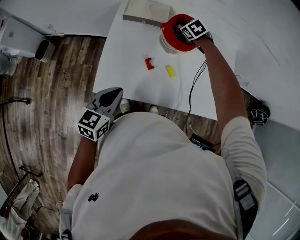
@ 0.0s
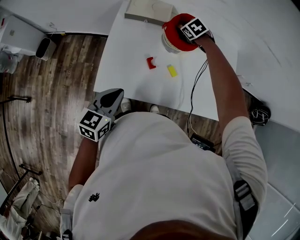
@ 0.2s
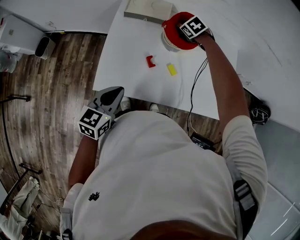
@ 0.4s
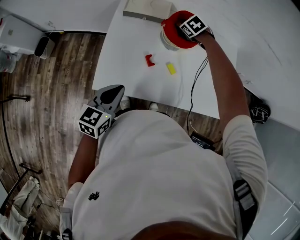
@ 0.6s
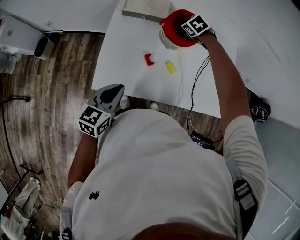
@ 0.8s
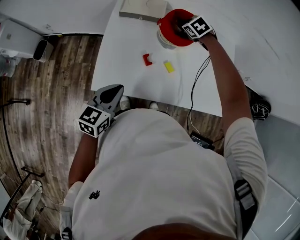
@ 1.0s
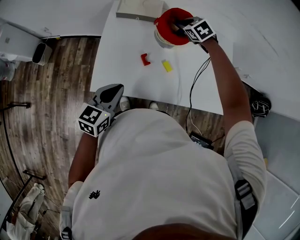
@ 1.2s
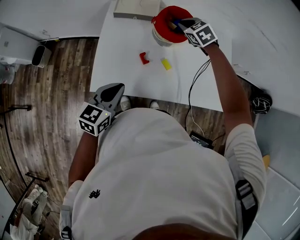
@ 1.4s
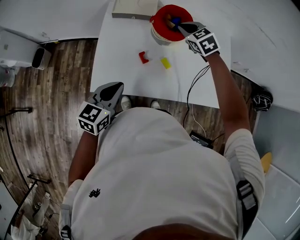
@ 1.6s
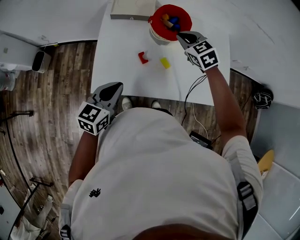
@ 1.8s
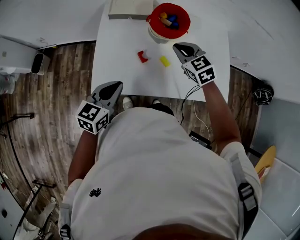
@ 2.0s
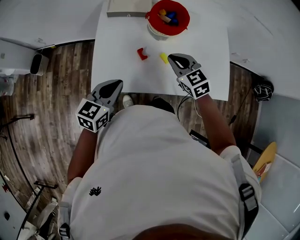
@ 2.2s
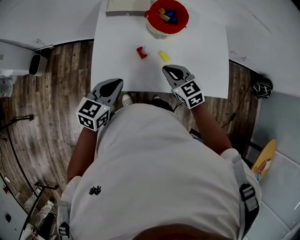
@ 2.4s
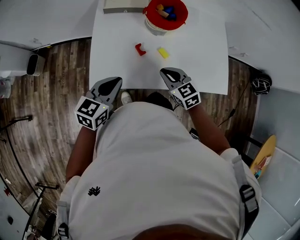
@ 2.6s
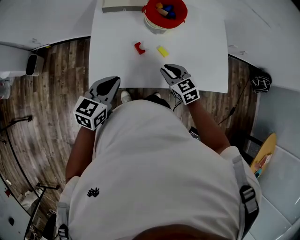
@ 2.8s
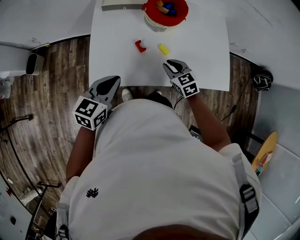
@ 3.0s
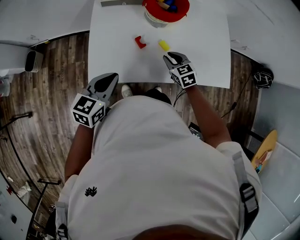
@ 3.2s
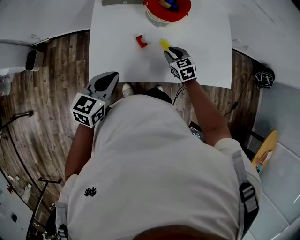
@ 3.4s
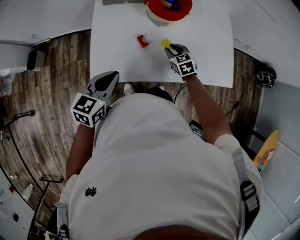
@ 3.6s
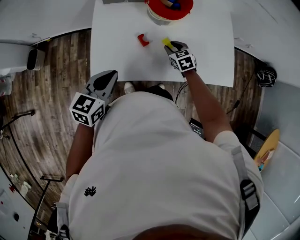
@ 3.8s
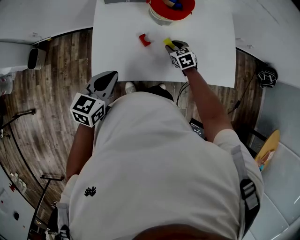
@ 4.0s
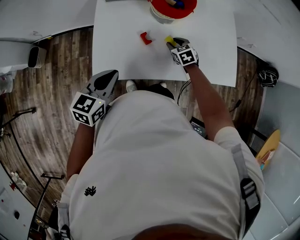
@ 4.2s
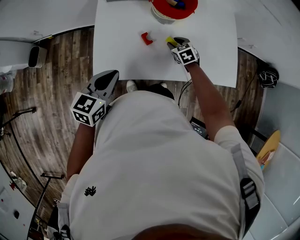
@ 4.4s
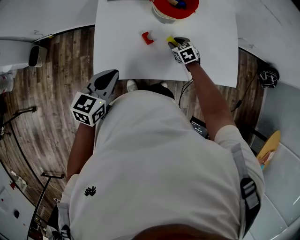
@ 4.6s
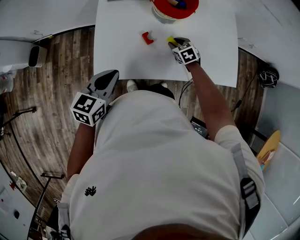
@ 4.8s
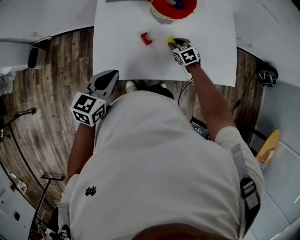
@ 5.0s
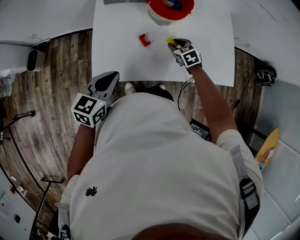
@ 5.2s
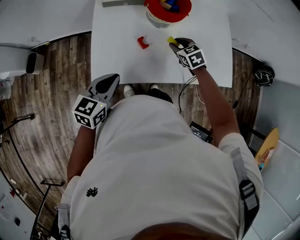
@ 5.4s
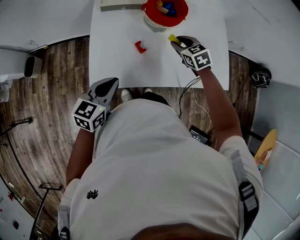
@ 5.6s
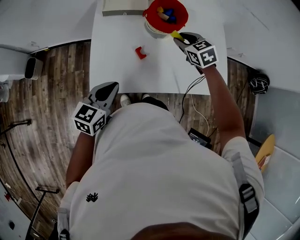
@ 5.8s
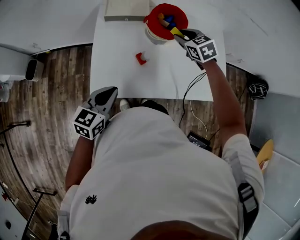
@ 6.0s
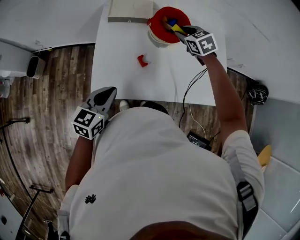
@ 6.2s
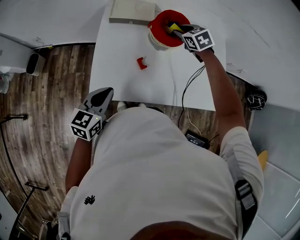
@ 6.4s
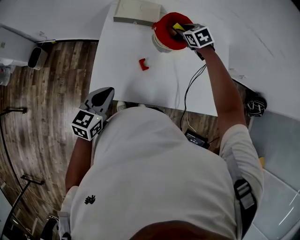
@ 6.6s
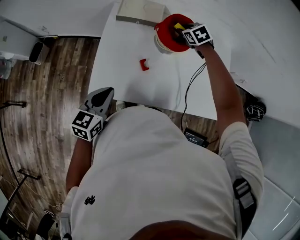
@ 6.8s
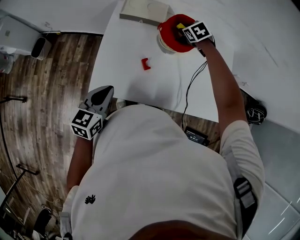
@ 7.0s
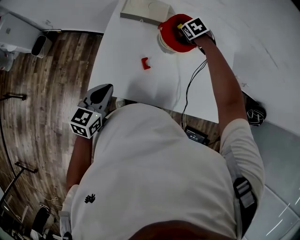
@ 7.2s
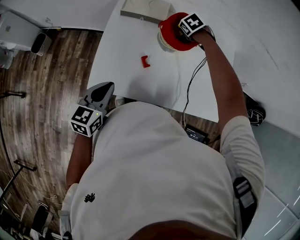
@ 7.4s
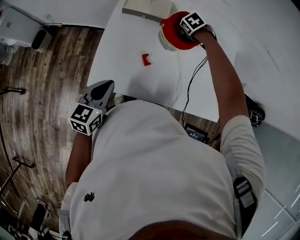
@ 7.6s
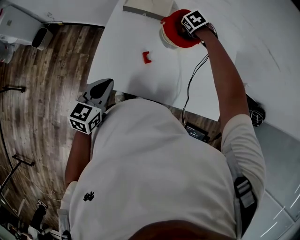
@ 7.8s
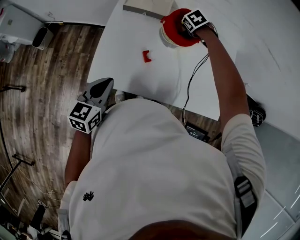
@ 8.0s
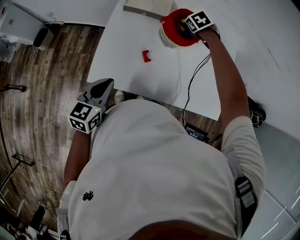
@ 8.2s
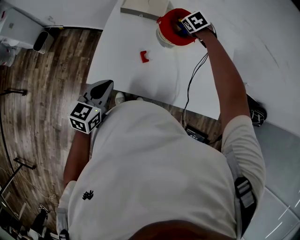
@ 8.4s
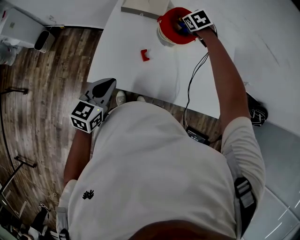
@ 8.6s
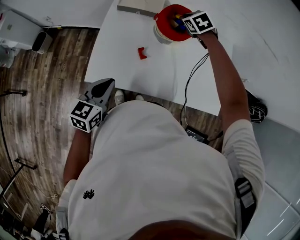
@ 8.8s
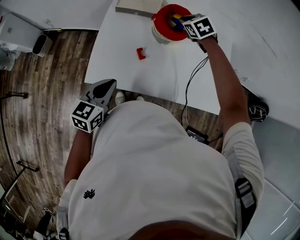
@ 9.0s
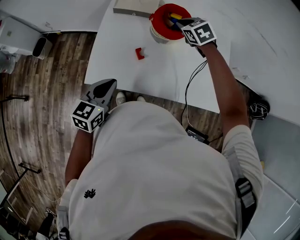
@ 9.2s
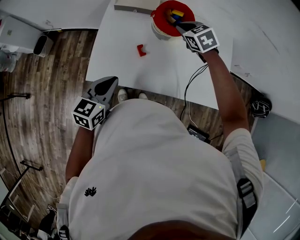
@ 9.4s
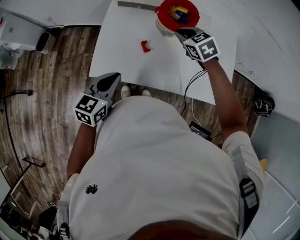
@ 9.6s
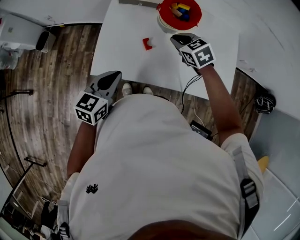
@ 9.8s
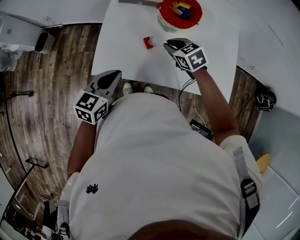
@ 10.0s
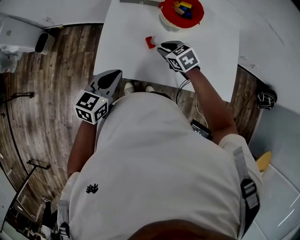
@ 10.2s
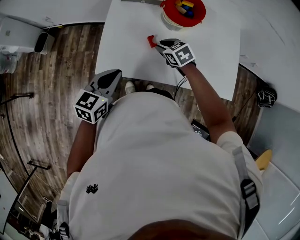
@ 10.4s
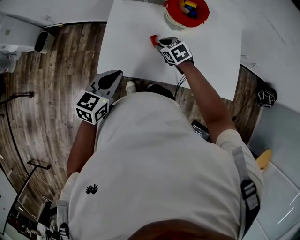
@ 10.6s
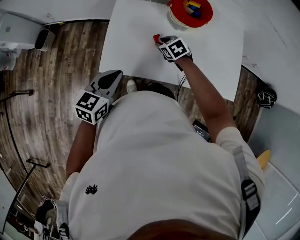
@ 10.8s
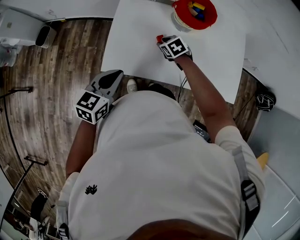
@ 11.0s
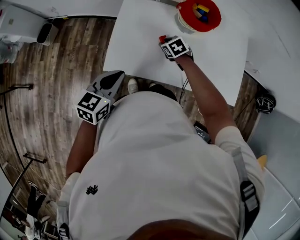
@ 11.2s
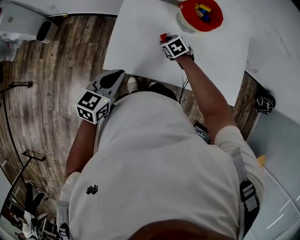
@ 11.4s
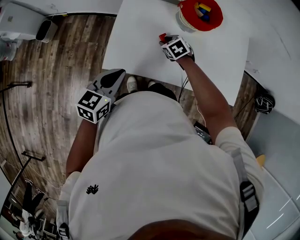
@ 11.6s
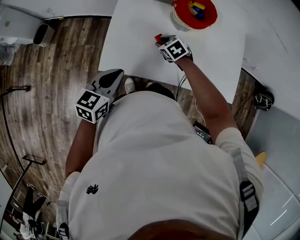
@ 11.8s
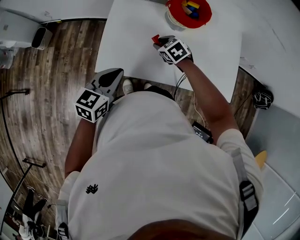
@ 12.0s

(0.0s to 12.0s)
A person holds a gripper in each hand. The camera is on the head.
0.0s - 1.6s: The right gripper moves upward and backward, about 15 cm, and closes.
1.6s - 3.0s: The right gripper moves backward and downward, approximately 25 cm.
3.0s - 4.4s: The right gripper shifts roughly 15 cm forward and downward.
4.4s - 6.0s: The right gripper is displaced upward by about 20 cm.
6.0s - 7.6s: The right gripper ends up about 15 cm from where it was, and swivels roughly 30 degrees.
7.6s - 9.0s: The right gripper shifts roughly 10 cm upward, swivels some 20 degrees, and closes.
9.0s - 10.4s: The right gripper shifts about 25 cm backward, to the left and downward.
10.4s - 12.0s: The right gripper goes downward and returns, approximately 10 cm each way.

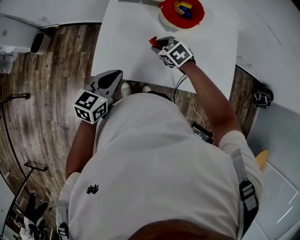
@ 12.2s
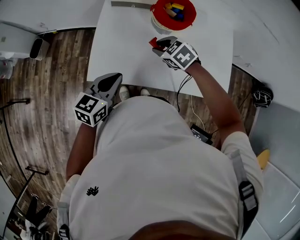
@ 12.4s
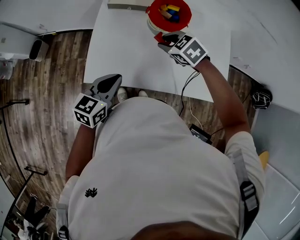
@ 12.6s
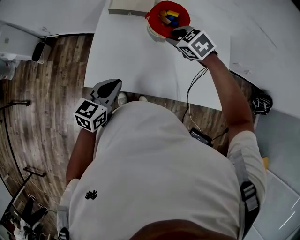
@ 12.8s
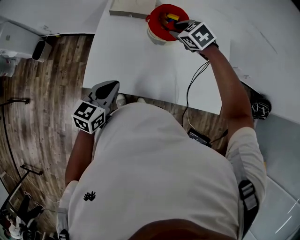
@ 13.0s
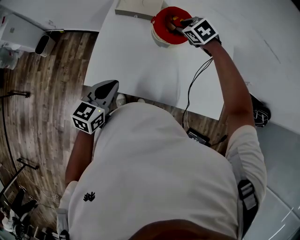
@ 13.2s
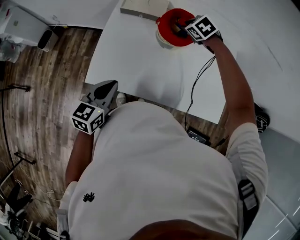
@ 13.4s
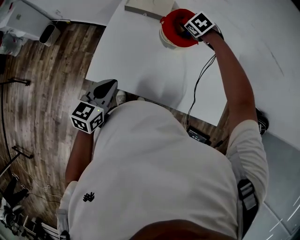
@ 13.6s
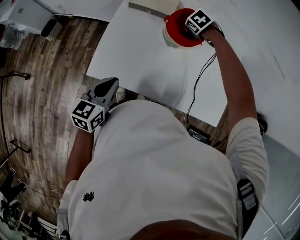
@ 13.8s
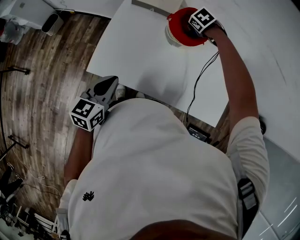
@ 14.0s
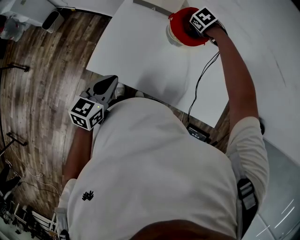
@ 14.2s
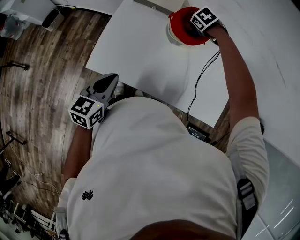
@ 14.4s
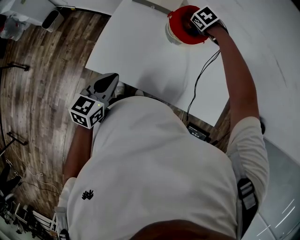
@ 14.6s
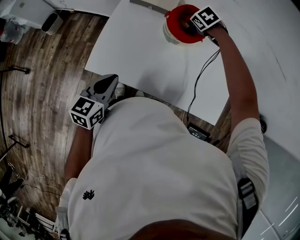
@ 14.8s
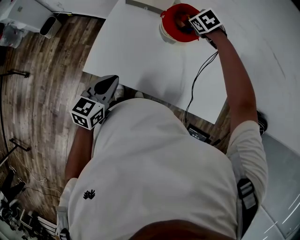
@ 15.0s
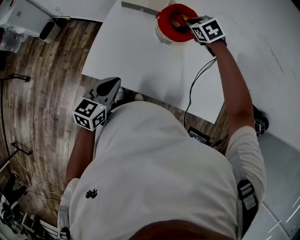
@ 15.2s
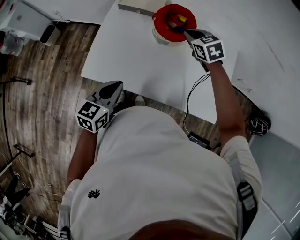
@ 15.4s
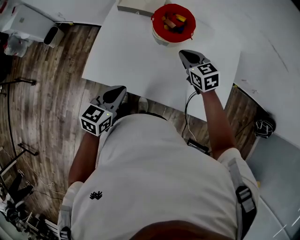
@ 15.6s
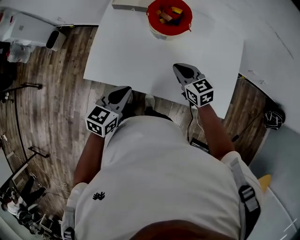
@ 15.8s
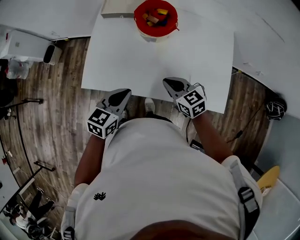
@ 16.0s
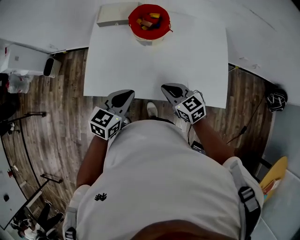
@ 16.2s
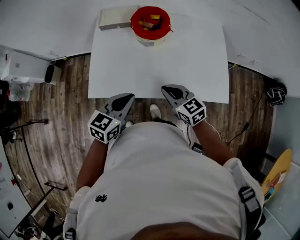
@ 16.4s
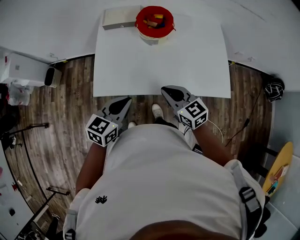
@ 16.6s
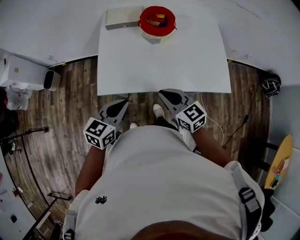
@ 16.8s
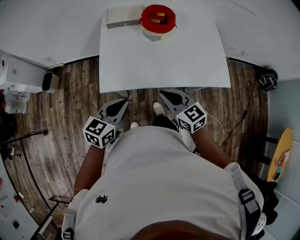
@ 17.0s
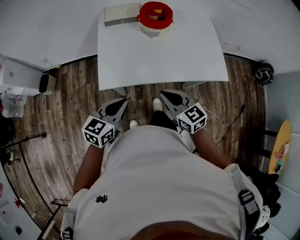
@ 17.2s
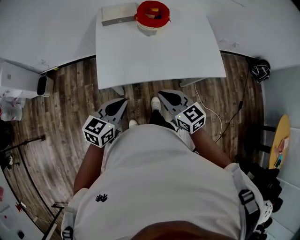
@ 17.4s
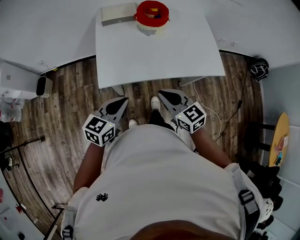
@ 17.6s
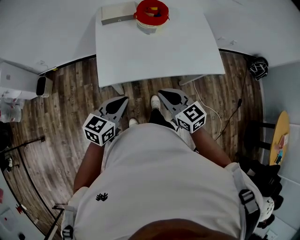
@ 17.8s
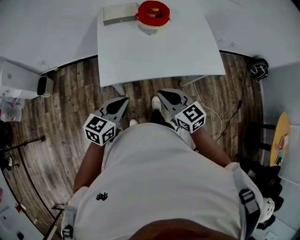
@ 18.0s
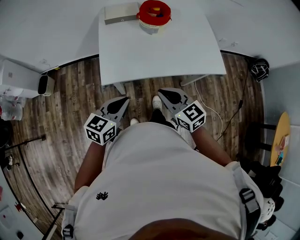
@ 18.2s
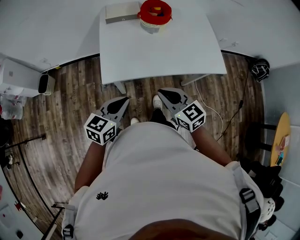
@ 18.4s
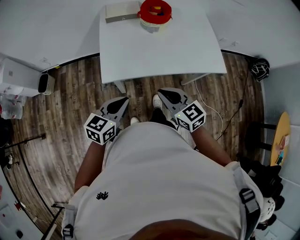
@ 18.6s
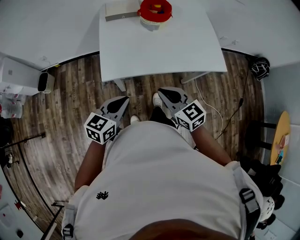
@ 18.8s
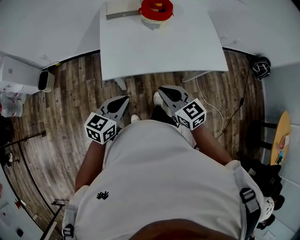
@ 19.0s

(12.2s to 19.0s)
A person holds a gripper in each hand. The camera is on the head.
12.2s - 13.6s: The right gripper heads forward and to the right, covering about 25 cm, and swivels approximately 20 degrees.
13.6s - 15.0s: The grippers move only a little.
15.0s - 16.2s: The left gripper travels to the right by approximately 10 cm, and swivels about 20 degrees. Meanwhile the right gripper heads backward, covering approximately 35 cm, tilts its fingers approximately 40 degrees upward, and closes its fingers.
16.2s - 17.6s: The left gripper heads to the left and backward, covering about 25 cm. The right gripper heads backward, to the left and upward, covering about 25 cm.
17.6s - 19.0s: There are only small adjustments of the grippers.

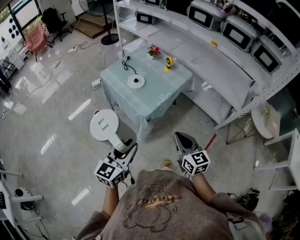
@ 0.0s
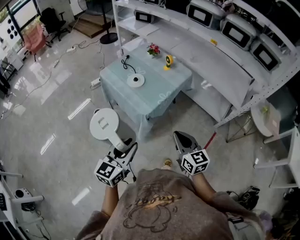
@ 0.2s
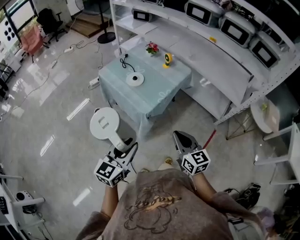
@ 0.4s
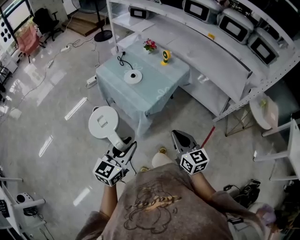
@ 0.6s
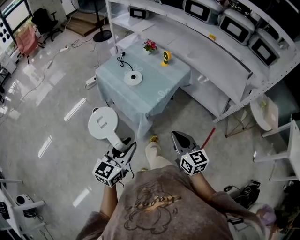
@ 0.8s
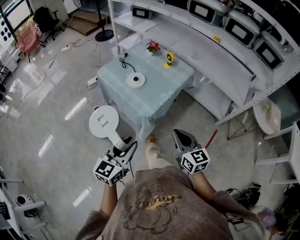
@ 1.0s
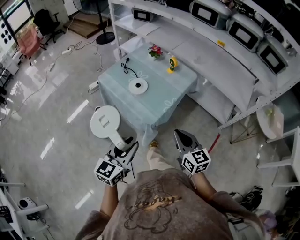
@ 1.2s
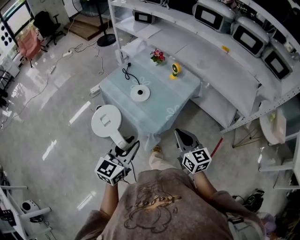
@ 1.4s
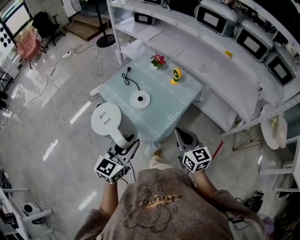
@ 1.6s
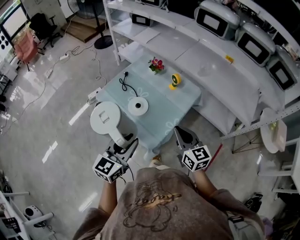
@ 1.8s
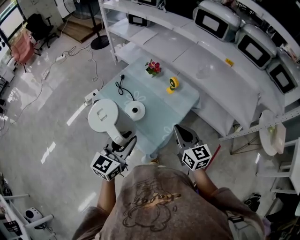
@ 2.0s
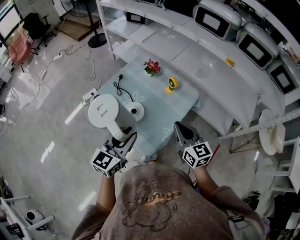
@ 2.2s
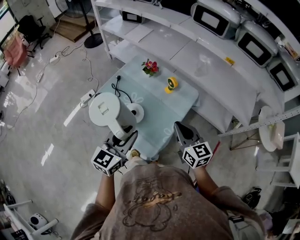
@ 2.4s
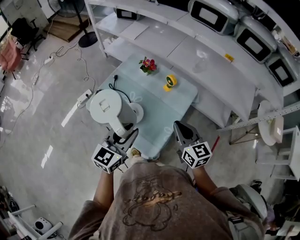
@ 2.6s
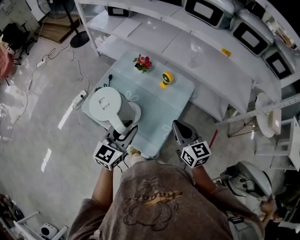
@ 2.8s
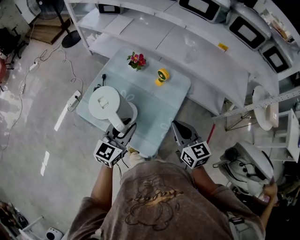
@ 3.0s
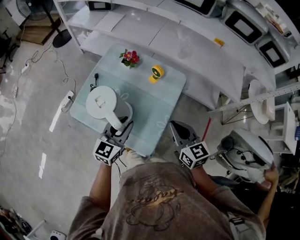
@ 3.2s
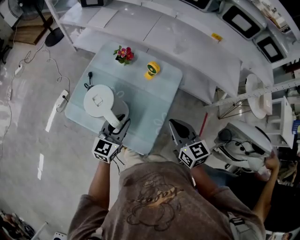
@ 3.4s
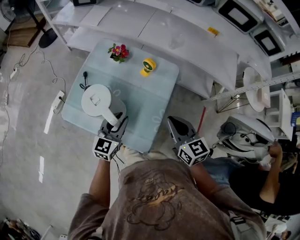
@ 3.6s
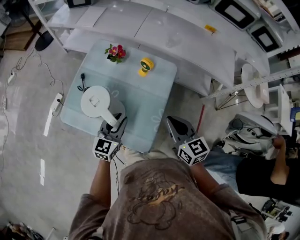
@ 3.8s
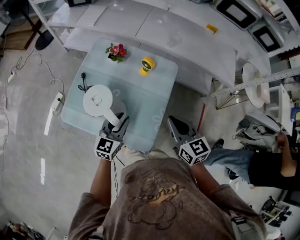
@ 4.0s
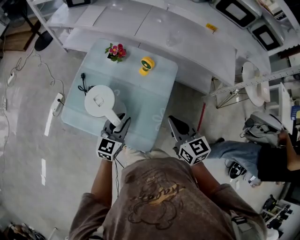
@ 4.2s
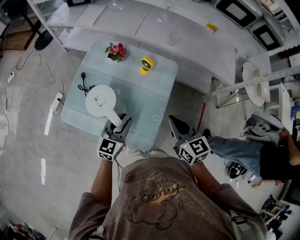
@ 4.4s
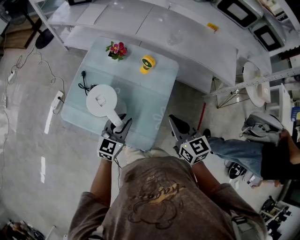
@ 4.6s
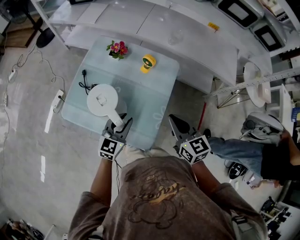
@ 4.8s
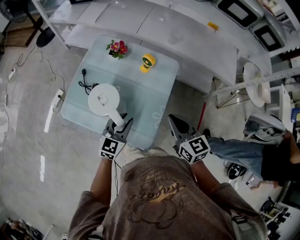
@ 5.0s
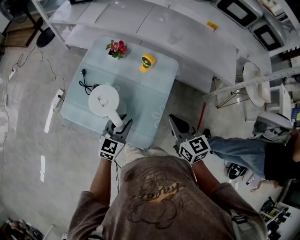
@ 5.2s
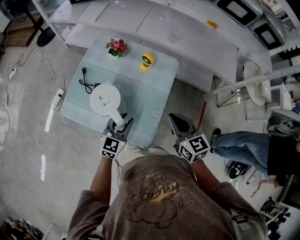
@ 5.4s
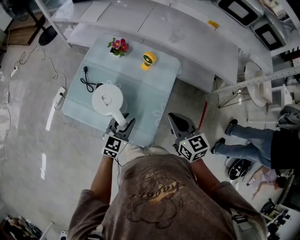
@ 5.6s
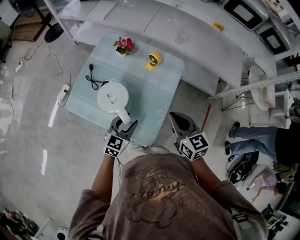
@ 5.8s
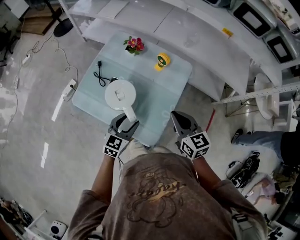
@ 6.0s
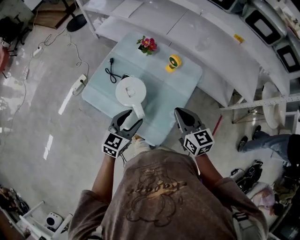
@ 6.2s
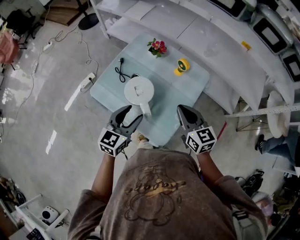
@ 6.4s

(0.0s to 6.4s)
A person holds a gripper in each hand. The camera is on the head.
0.0s - 1.6s: The two grippers go roughly 20 cm forward.
1.6s - 3.2s: The right gripper goes approximately 15 cm forward. Meanwhile the left gripper shifts roughly 25 cm forward.
3.2s - 4.8s: The left gripper heads downward, covering about 5 cm.
4.8s - 6.4s: The right gripper heads to the left, covering about 5 cm, while the left gripper heads upward and to the left, covering approximately 10 cm, and opens.
